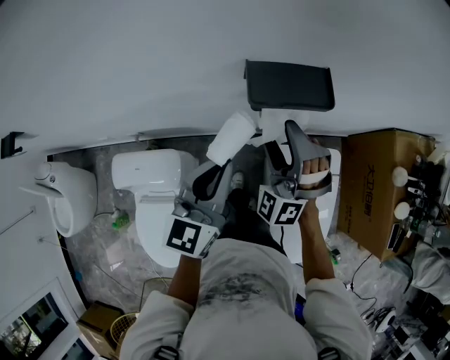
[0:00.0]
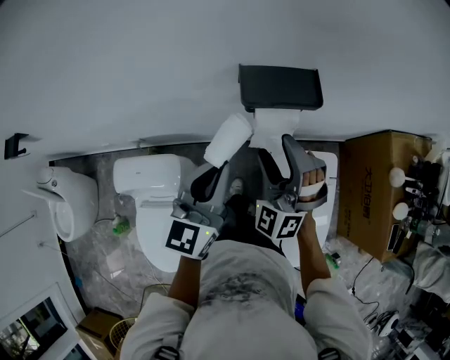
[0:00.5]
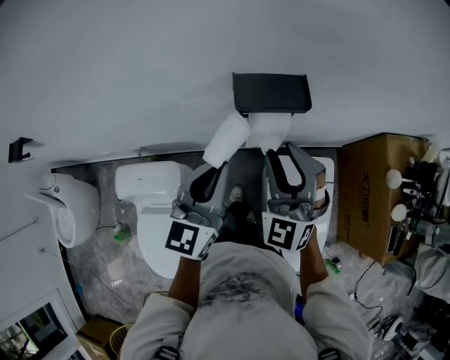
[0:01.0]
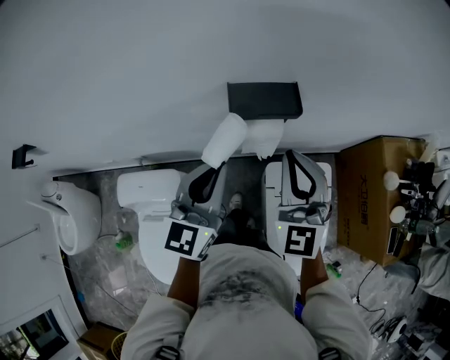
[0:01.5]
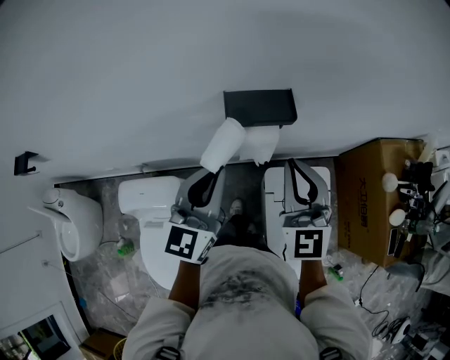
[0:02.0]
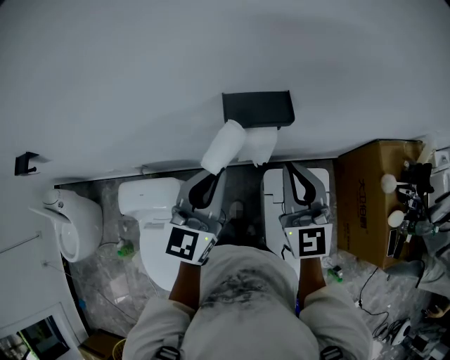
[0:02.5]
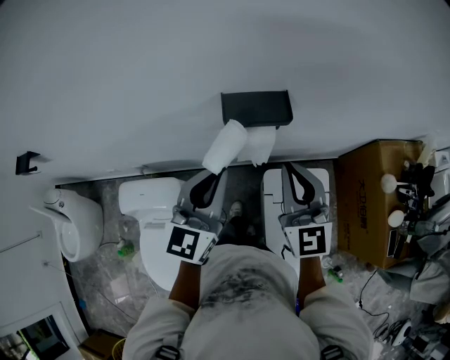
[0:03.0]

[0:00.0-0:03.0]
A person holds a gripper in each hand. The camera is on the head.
0:00.0 to 0:01.5: The right gripper heads upward and to the right, covering some 15 cm, rolls clockwise, seen from behind, by roughly 40 degrees, and closes its fingers, while the left gripper travels upward by roughly 5 cm.
0:01.5 to 0:03.0: The grippers move only a little.

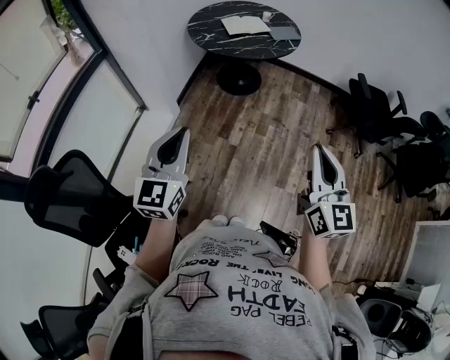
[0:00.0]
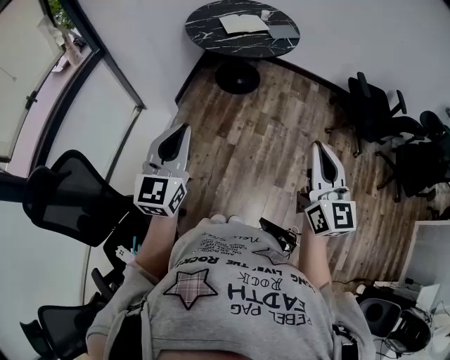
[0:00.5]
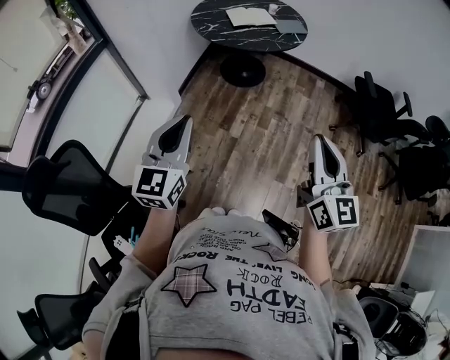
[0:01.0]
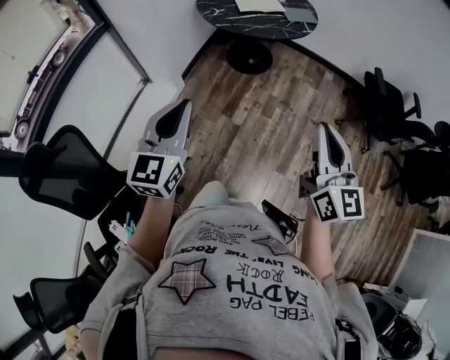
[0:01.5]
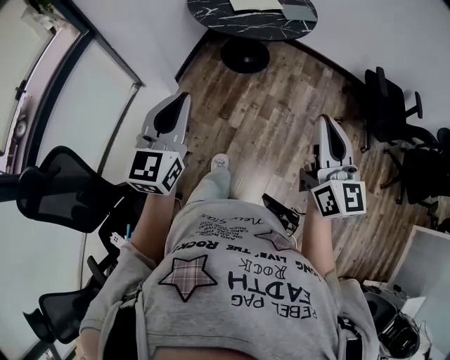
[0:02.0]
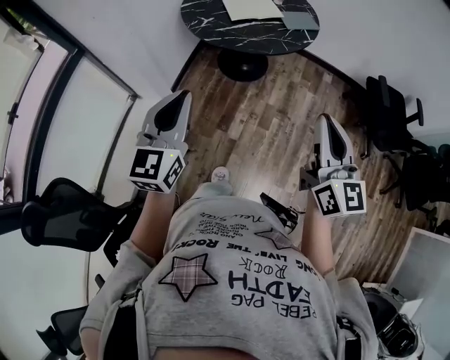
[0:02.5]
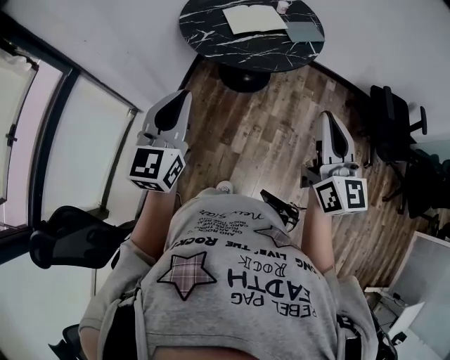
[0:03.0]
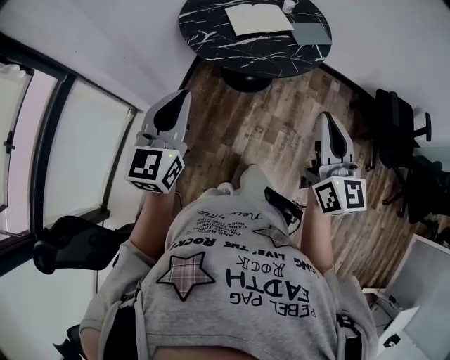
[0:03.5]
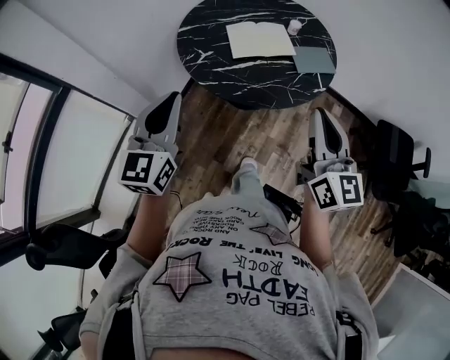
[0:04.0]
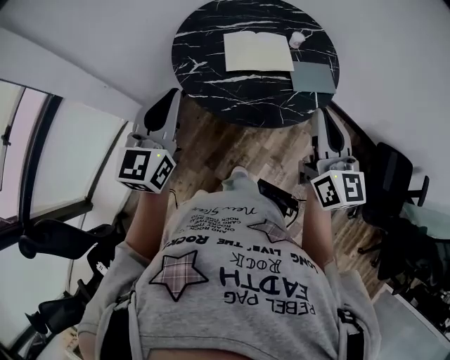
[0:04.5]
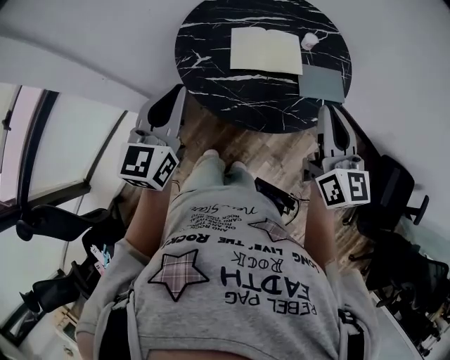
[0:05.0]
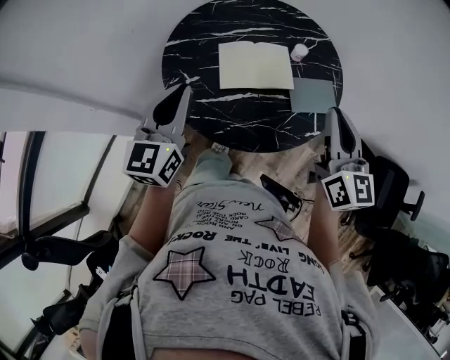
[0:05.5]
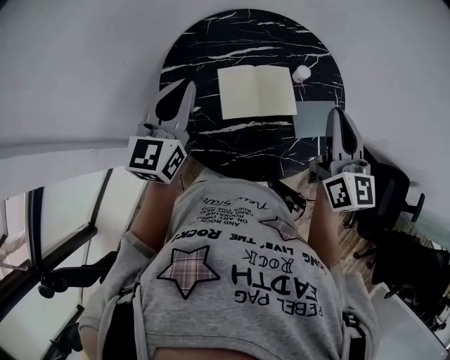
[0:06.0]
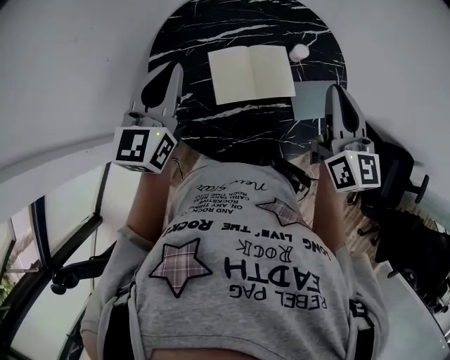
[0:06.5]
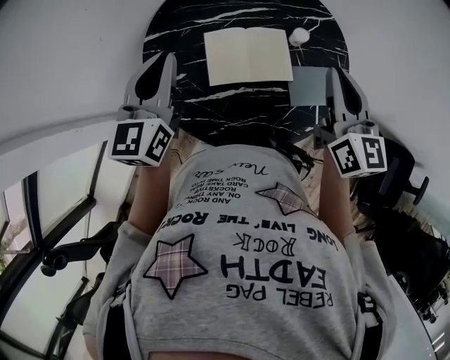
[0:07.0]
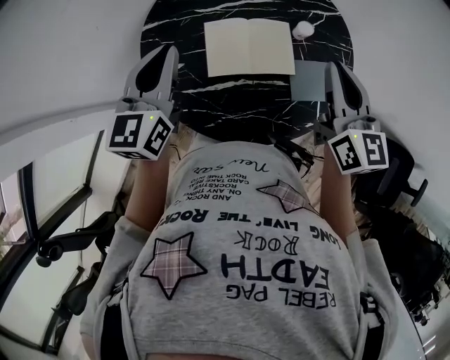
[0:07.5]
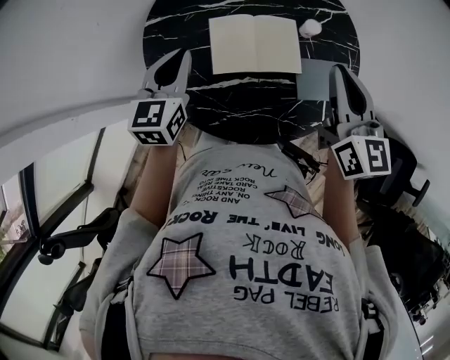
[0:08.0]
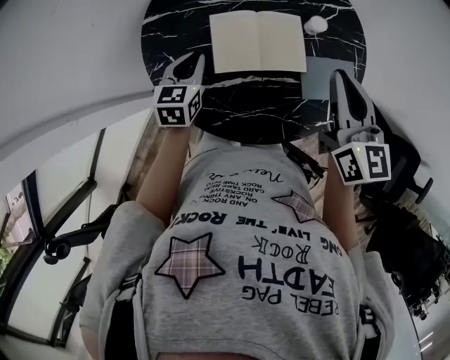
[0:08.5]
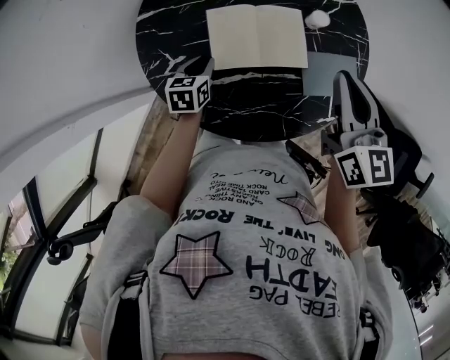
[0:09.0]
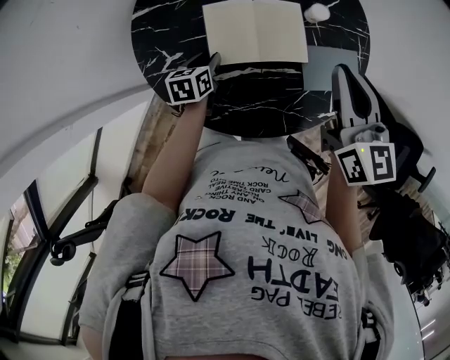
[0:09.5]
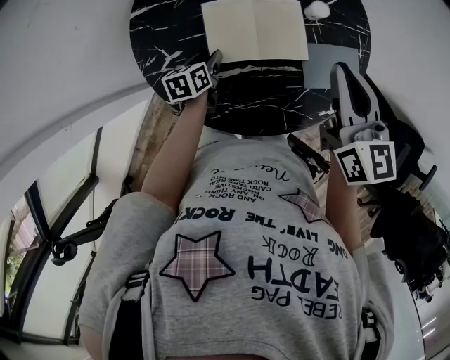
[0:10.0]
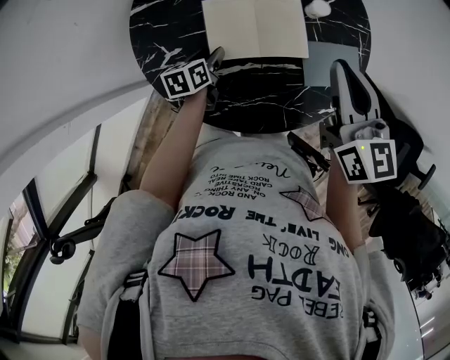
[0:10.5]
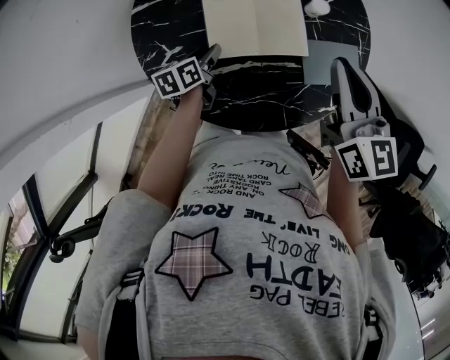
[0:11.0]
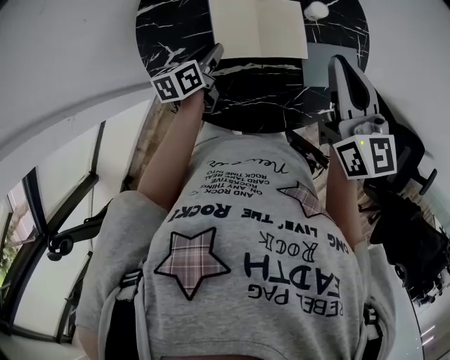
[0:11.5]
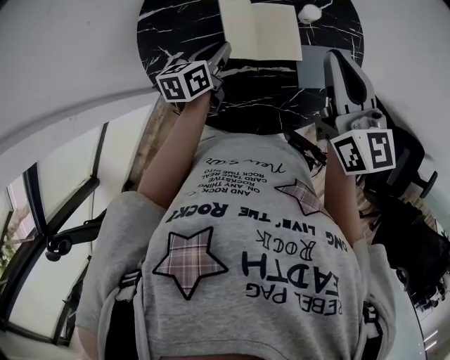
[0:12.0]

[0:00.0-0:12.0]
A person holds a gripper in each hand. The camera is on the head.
0:00.0 to 0:02.0: Both grippers travel together forward, some 15 cm.
0:02.0 to 0:04.0: The two grippers travel together, forward, about 40 cm.
0:04.0 to 0:06.0: Both grippers travel together forward, roughly 35 cm.
0:06.0 to 0:08.0: The right gripper moves downward, roughly 5 cm. The left gripper goes some 10 cm downward.
0:08.0 to 0:10.0: The left gripper moves downward, approximately 25 cm, rotates some 40 degrees, and opens up.
0:10.0 to 0:12.0: The left gripper shifts about 10 cm upward, and closes.

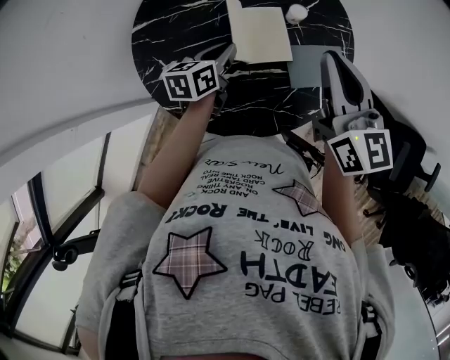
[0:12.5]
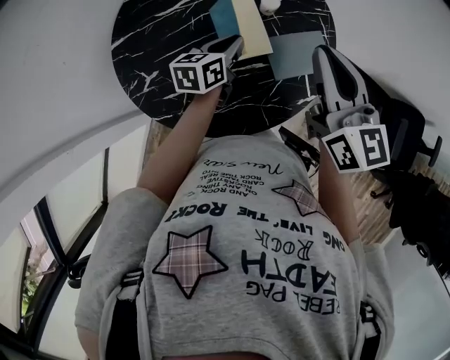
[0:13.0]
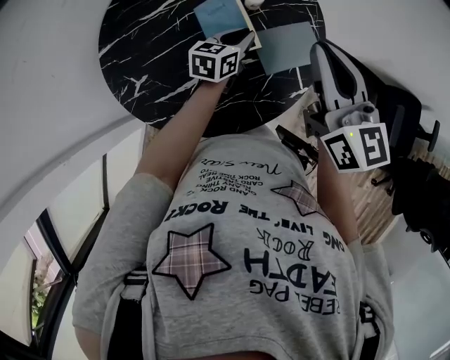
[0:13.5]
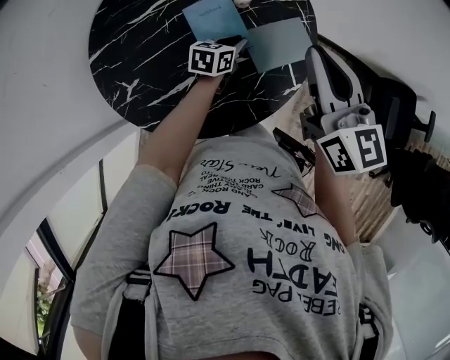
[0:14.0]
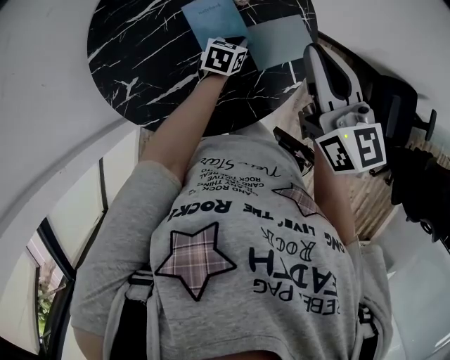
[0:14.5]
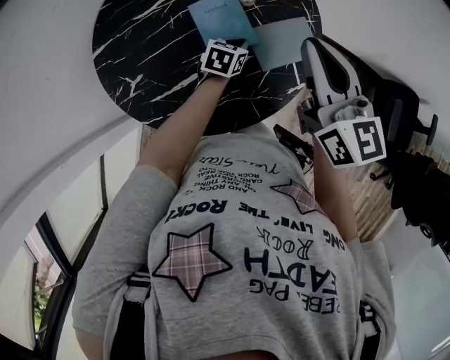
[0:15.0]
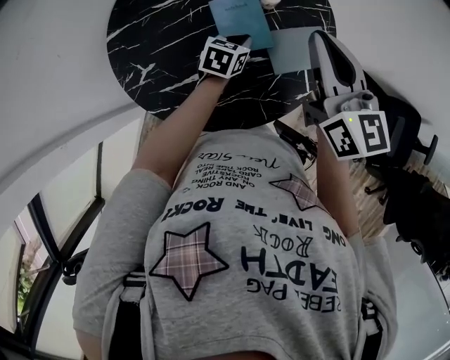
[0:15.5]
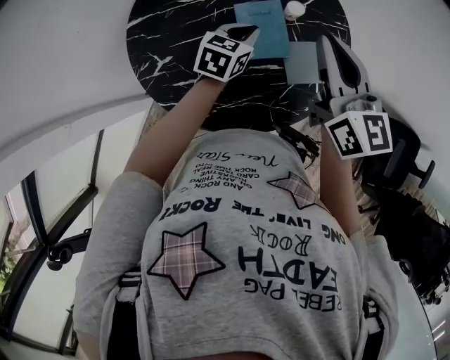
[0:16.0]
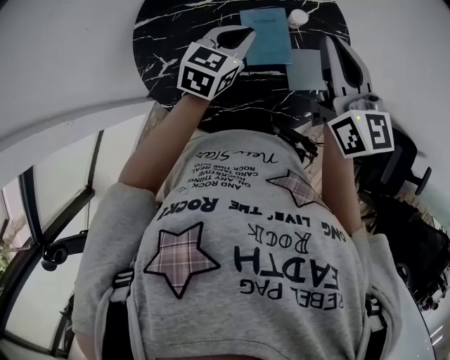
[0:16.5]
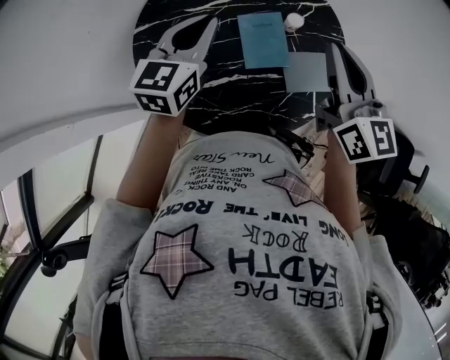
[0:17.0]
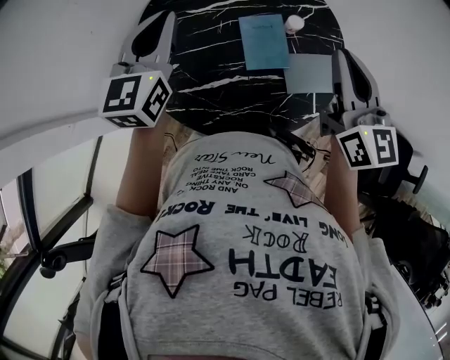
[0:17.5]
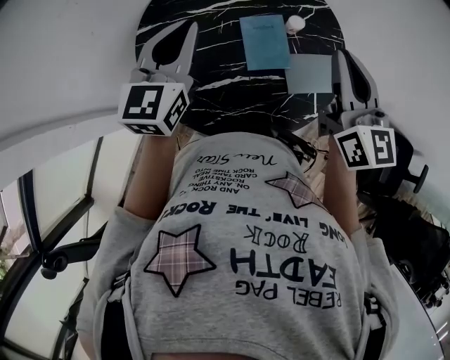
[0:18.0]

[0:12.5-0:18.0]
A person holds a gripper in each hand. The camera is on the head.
0:12.5 to 0:14.5: The left gripper moves to the right and downward, approximately 20 cm, and changes its angle by roughly 30 degrees. The right gripper heads to the right, covering approximately 5 cm.
0:14.5 to 0:16.0: The left gripper moves upward and to the left, some 15 cm; the right gripper is displaced to the left by approximately 10 cm.
0:16.0 to 0:18.0: The left gripper moves upward and to the left, roughly 25 cm, and rotates roughly 30 degrees.

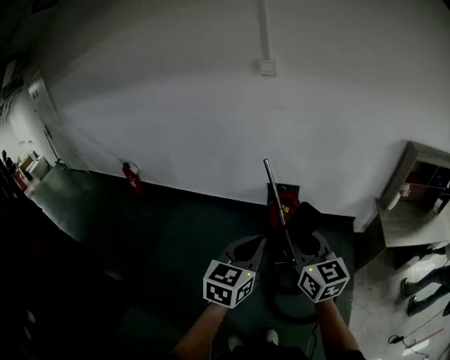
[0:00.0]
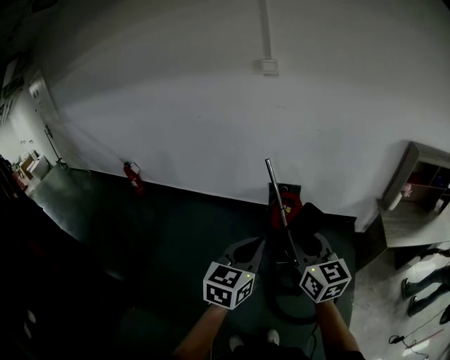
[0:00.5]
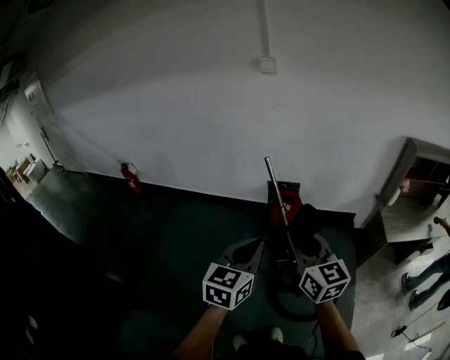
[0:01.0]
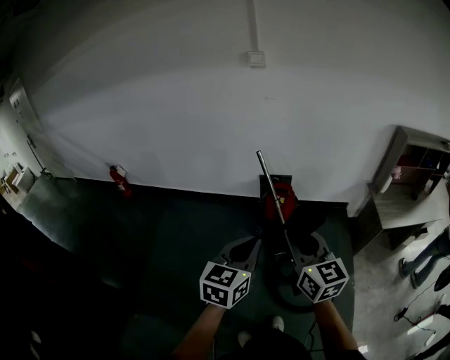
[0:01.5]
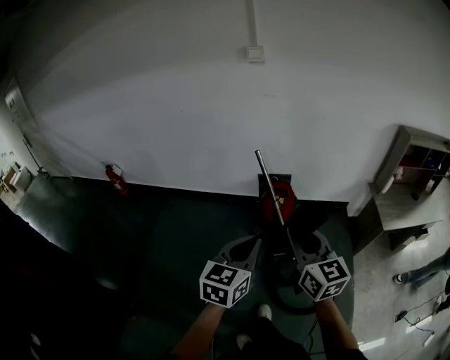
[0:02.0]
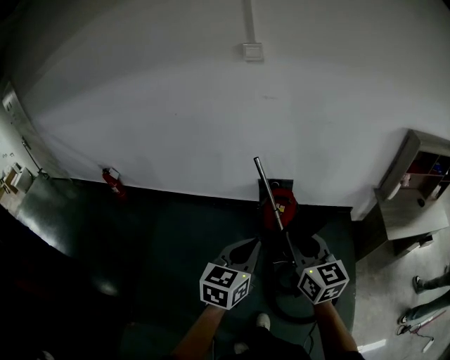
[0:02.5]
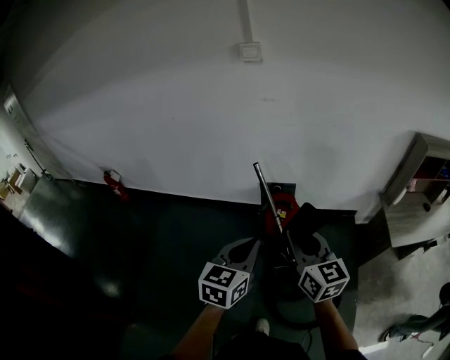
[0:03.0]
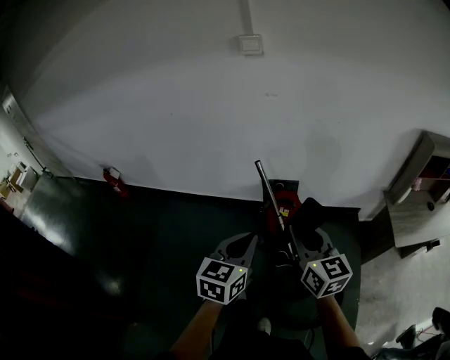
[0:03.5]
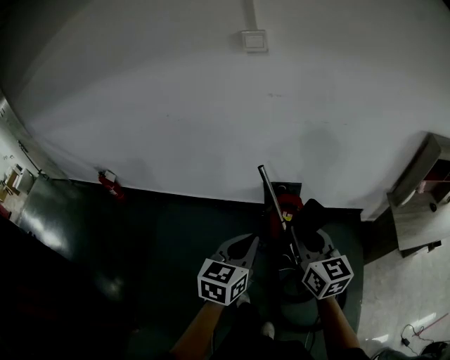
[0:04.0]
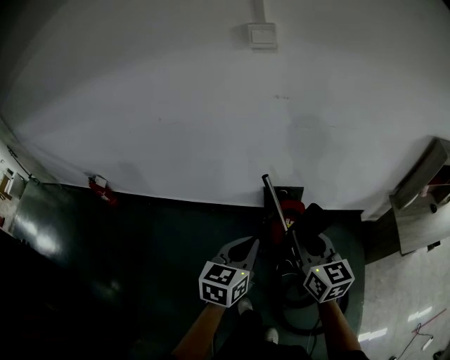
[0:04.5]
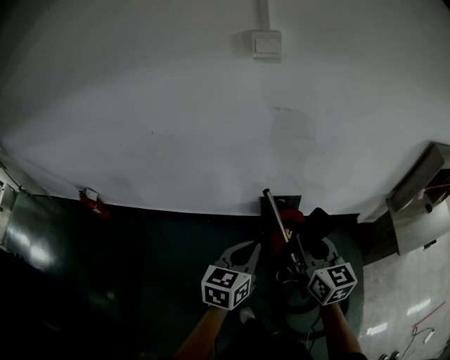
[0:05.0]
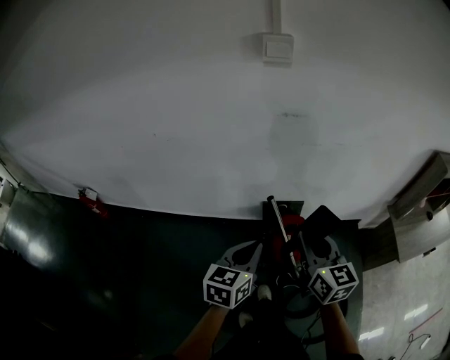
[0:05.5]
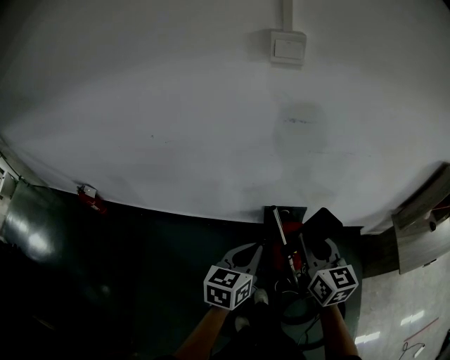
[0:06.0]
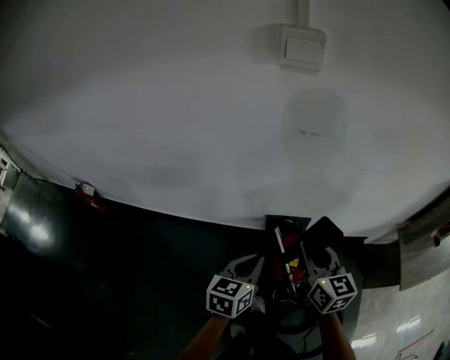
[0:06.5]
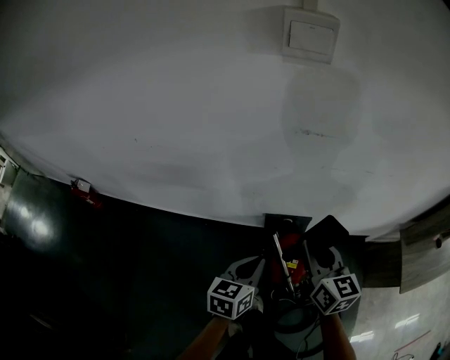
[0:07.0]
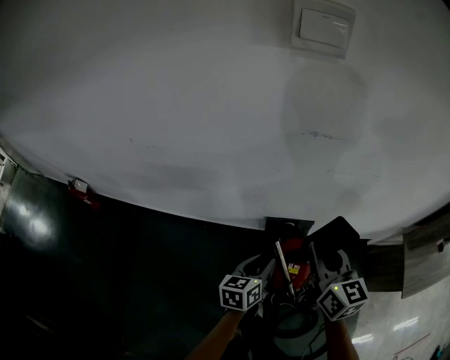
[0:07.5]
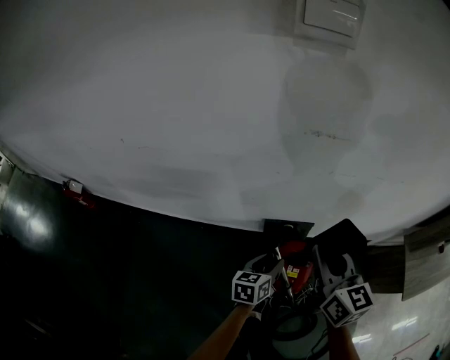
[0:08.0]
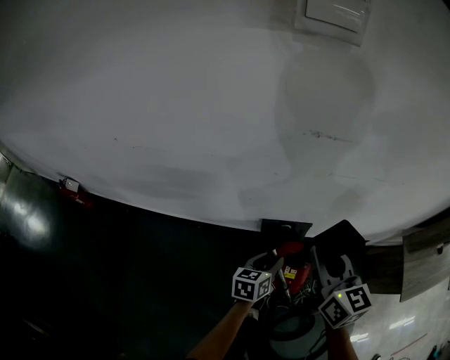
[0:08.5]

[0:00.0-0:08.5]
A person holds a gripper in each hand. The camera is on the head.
0:00.0 to 0:02.0: The left gripper changes place by about 5 cm.
0:02.0 to 0:04.0: The grippers both shift forward by about 25 cm.
0:04.0 to 0:06.5: Both grippers move forward, some 30 cm.
0:06.5 to 0:08.5: The right gripper moves forward, approximately 10 cm. The left gripper is displaced downward and forward by some 25 cm, and opens up.
